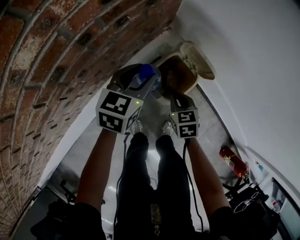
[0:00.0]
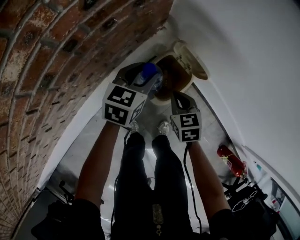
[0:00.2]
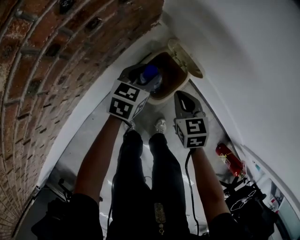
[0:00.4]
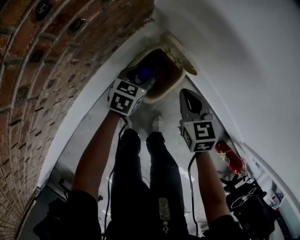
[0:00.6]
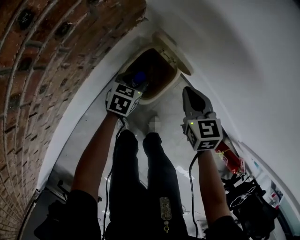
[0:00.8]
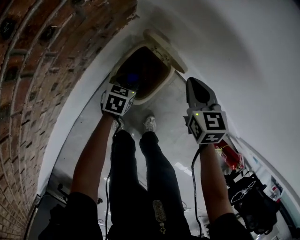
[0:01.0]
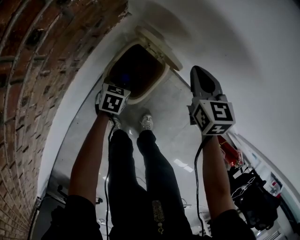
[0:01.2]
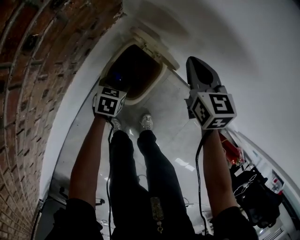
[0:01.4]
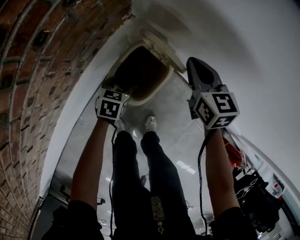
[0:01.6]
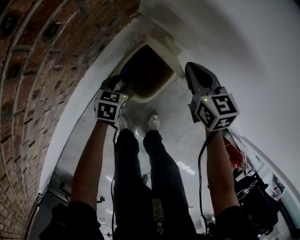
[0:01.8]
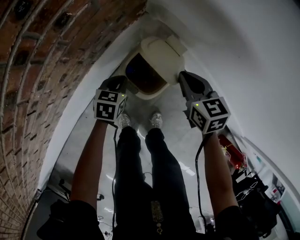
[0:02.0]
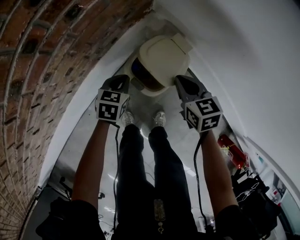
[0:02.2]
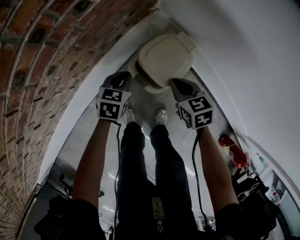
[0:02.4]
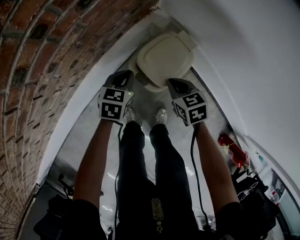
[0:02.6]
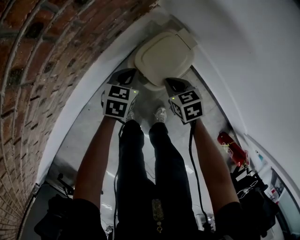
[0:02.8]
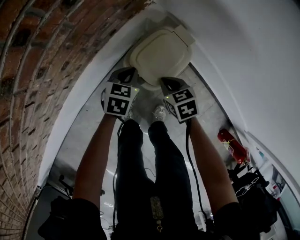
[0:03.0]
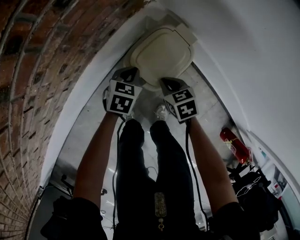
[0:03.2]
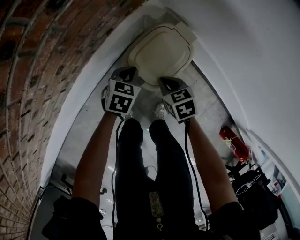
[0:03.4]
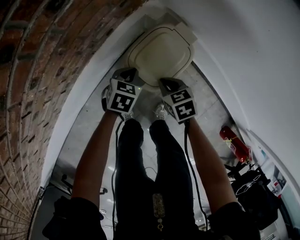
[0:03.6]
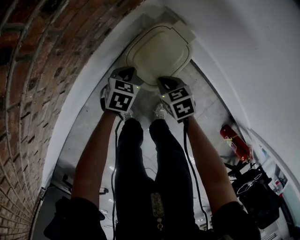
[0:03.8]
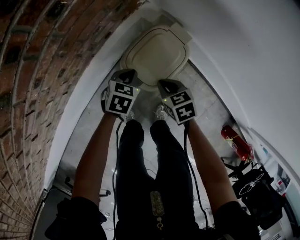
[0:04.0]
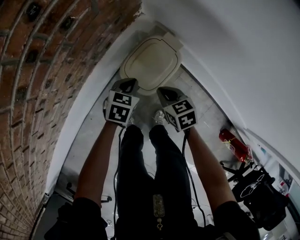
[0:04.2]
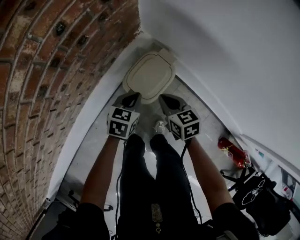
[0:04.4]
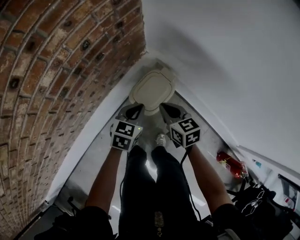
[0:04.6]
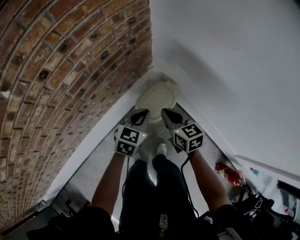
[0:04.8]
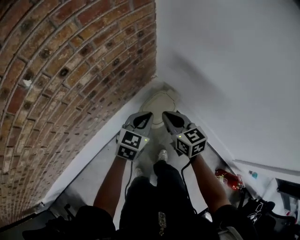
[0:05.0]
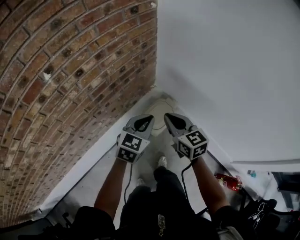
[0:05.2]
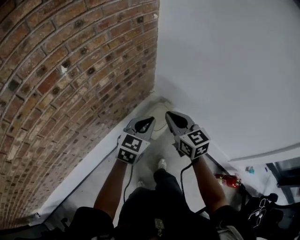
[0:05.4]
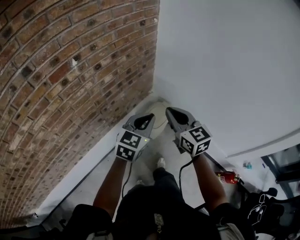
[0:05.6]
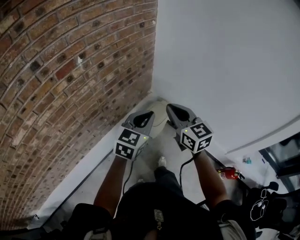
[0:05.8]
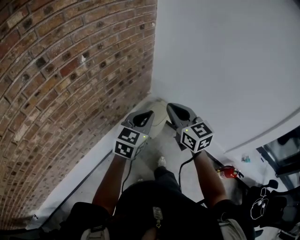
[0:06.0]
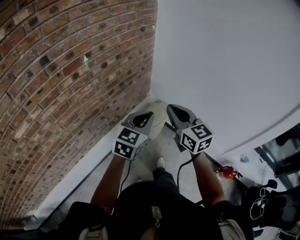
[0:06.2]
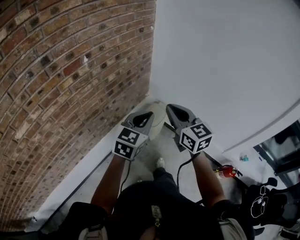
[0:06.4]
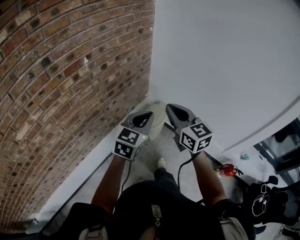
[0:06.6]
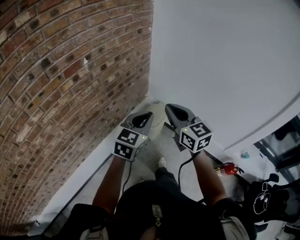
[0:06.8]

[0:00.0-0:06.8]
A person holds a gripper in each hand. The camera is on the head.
0:00.0 to 0:01.4: The left gripper is displaced downward by roughly 25 cm, and changes its angle by about 30 degrees. Meanwhile the right gripper heads to the right, forward and upward, covering roughly 25 cm, and changes its angle by roughly 20 degrees.
0:01.4 to 0:02.8: The left gripper heads upward and to the left, covering roughly 10 cm, and closes up. Meanwhile the right gripper moves to the left, downward and backward, some 25 cm, and turns by approximately 30 degrees.
0:04.0 to 0:05.4: The grippers both shift upward by some 50 cm. The right gripper points its fingers about 40 degrees further upward; the left gripper tips its fingers upward by about 40 degrees.
0:05.4 to 0:06.8: Both grippers move backward and upward, some 15 cm.

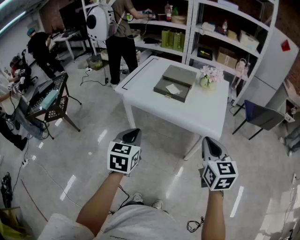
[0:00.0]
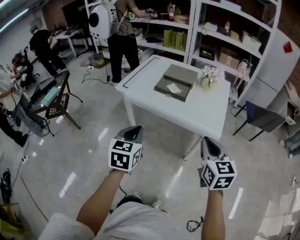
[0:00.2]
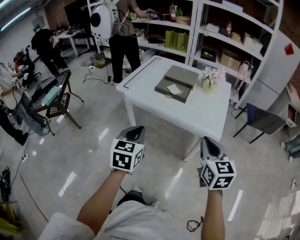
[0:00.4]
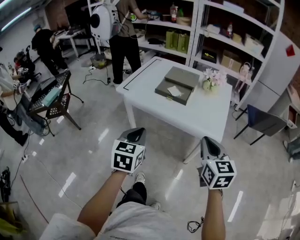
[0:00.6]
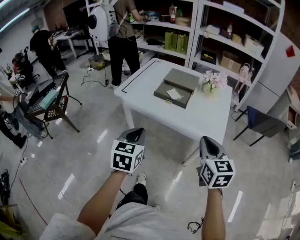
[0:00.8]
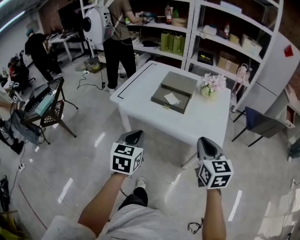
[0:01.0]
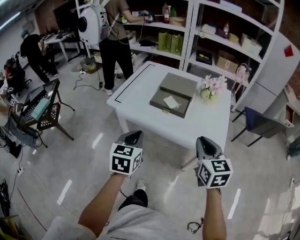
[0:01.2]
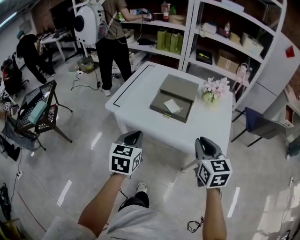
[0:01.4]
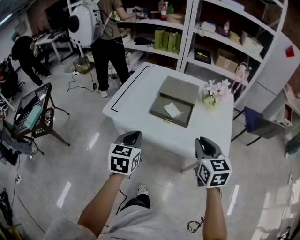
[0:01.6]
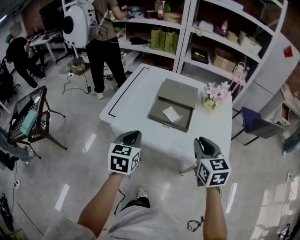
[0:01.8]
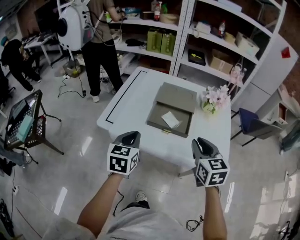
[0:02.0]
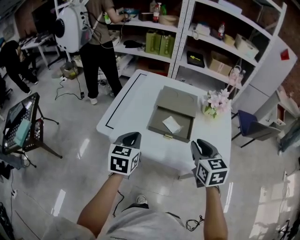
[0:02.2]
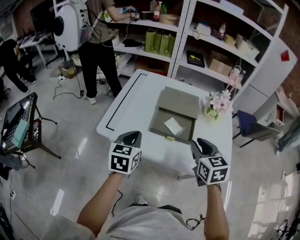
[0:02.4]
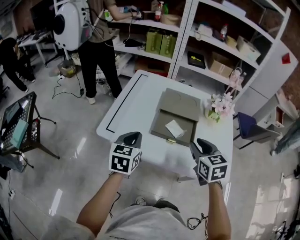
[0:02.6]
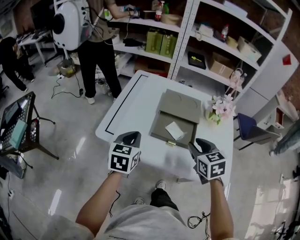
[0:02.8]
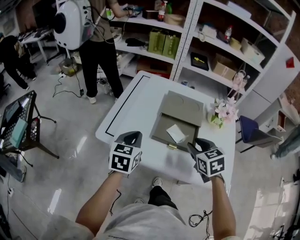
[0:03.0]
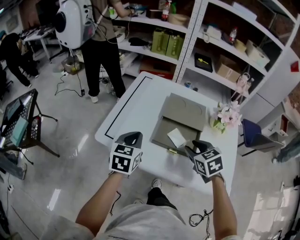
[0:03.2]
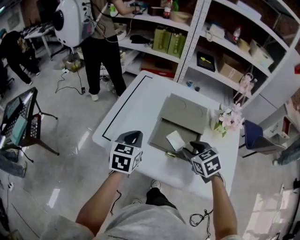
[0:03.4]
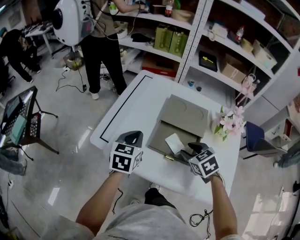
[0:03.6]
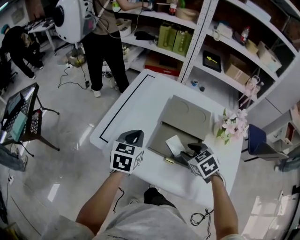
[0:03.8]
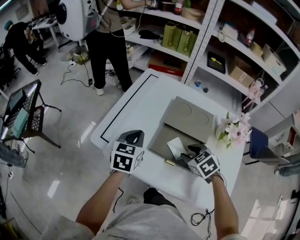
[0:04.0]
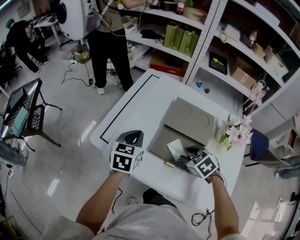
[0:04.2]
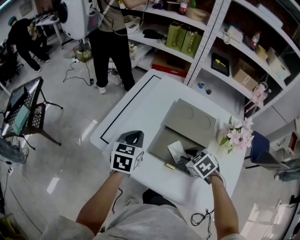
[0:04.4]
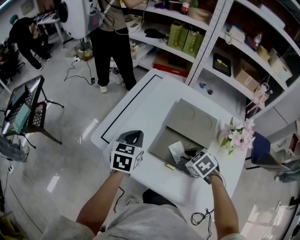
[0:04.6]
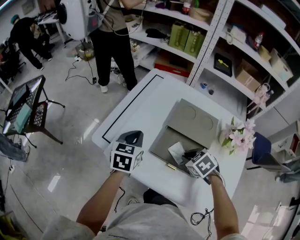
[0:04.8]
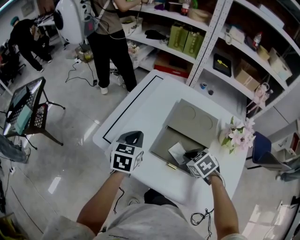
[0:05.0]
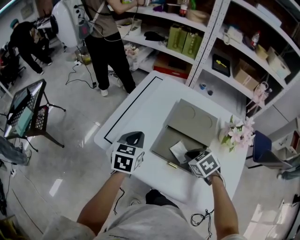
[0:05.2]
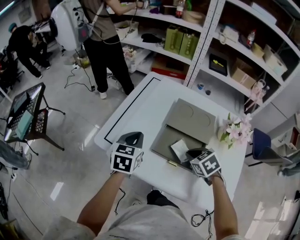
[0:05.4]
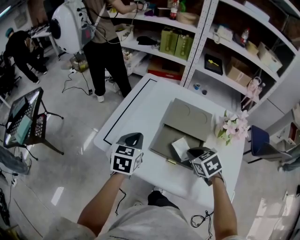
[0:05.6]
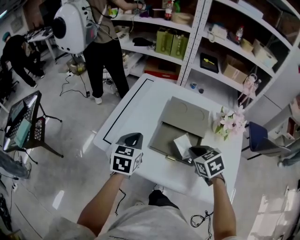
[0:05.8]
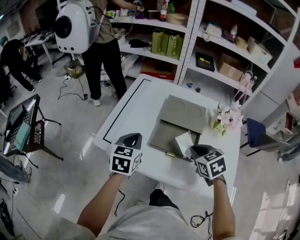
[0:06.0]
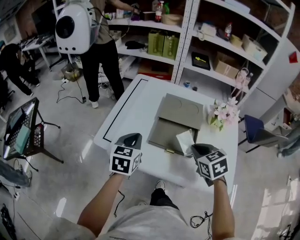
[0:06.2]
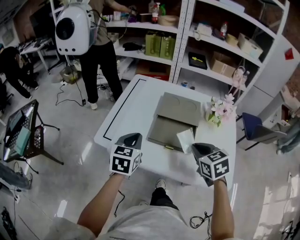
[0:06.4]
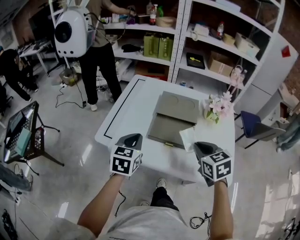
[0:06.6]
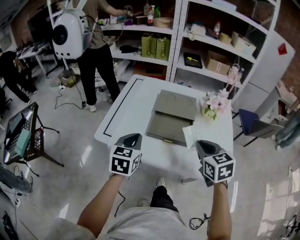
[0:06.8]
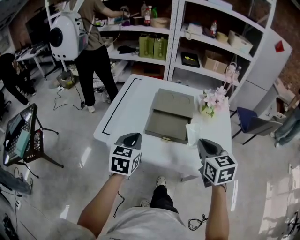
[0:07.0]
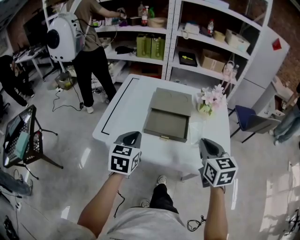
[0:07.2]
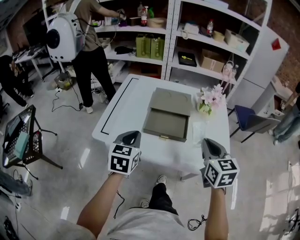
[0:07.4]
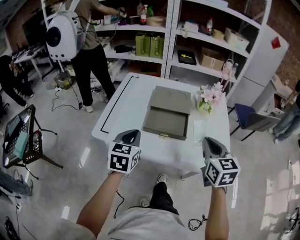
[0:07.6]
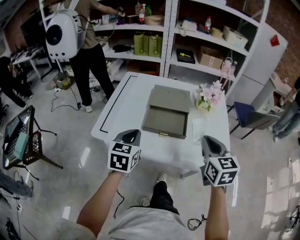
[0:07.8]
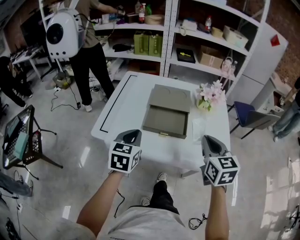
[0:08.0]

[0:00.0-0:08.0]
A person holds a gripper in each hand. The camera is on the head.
0:00.0 to 0:01.6: The grippers both shift forward by approximately 20 cm.
0:01.6 to 0:03.2: The right gripper moves forward and downward, some 20 cm, turns by roughly 30 degrees, and opens. The left gripper heads forward, covering about 20 cm.
0:03.2 to 0:04.8: The right gripper moves downward and forward, roughly 10 cm, rotates some 30 degrees, and closes up. The left gripper shifts roughly 5 cm forward.
0:04.8 to 0:06.4: The left gripper goes approximately 10 cm backward and upward. Meanwhile the right gripper is displaced upward and backward by roughly 15 cm, and rotates approximately 40 degrees.
0:06.4 to 0:08.0: The left gripper goes about 5 cm backward. Meanwhile the right gripper shifts approximately 10 cm backward, upward and to the right, and changes its angle by some 30 degrees.

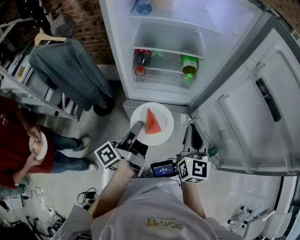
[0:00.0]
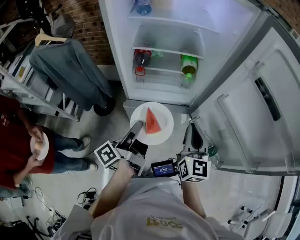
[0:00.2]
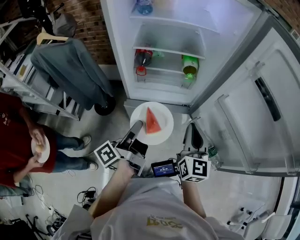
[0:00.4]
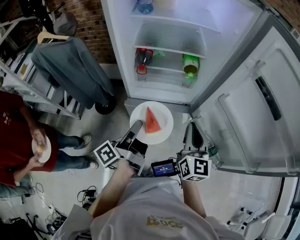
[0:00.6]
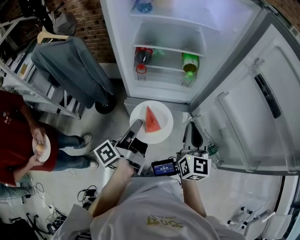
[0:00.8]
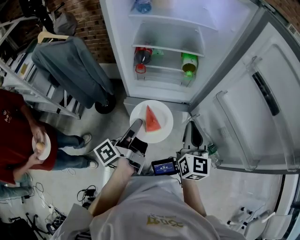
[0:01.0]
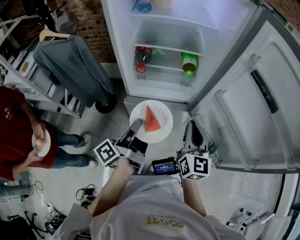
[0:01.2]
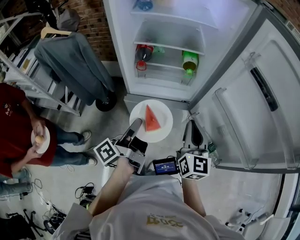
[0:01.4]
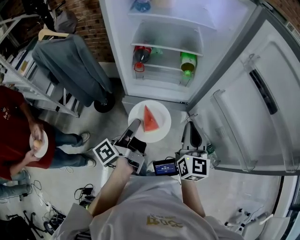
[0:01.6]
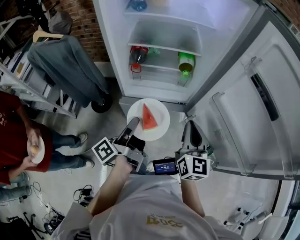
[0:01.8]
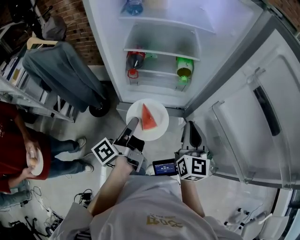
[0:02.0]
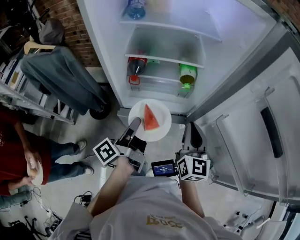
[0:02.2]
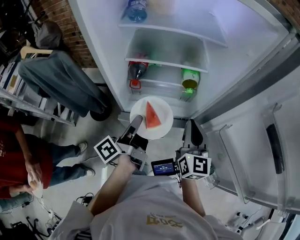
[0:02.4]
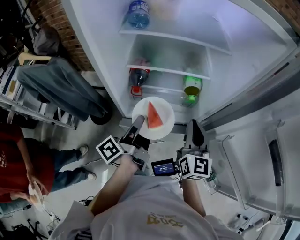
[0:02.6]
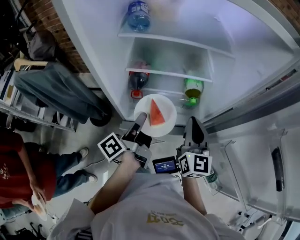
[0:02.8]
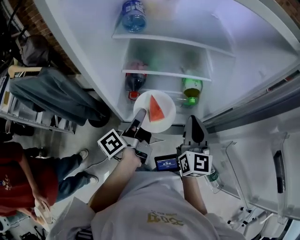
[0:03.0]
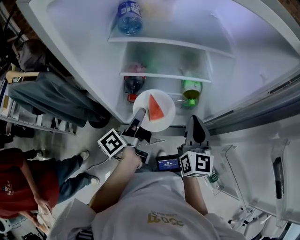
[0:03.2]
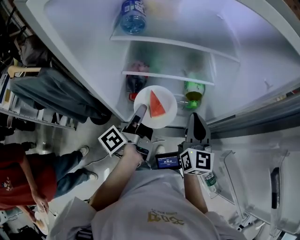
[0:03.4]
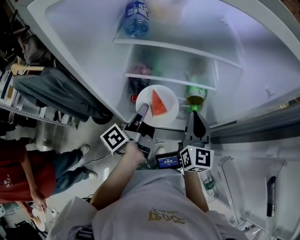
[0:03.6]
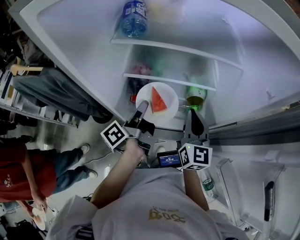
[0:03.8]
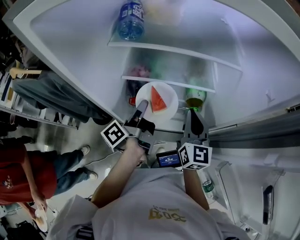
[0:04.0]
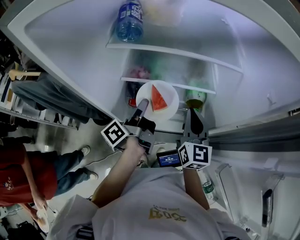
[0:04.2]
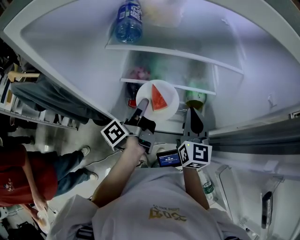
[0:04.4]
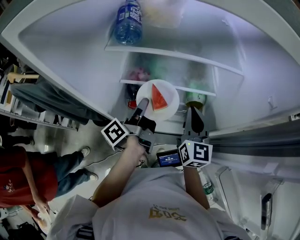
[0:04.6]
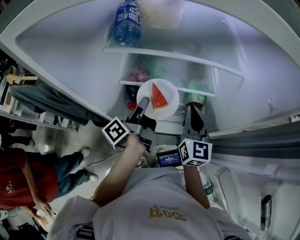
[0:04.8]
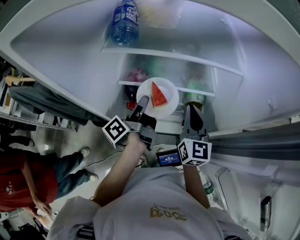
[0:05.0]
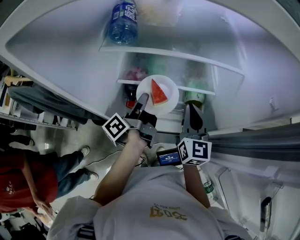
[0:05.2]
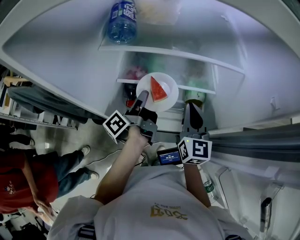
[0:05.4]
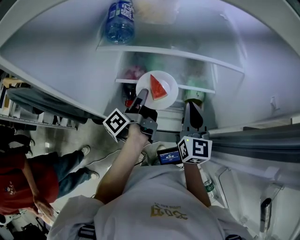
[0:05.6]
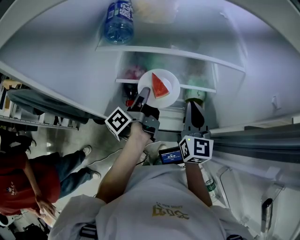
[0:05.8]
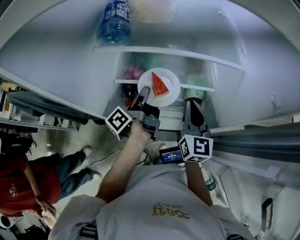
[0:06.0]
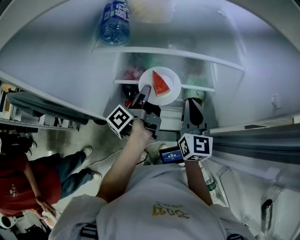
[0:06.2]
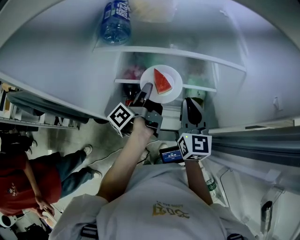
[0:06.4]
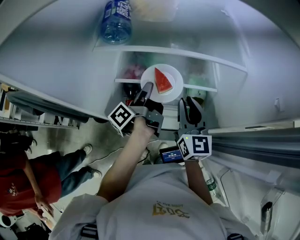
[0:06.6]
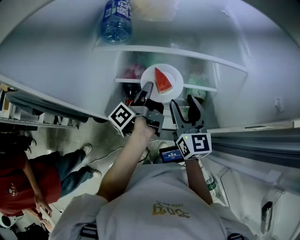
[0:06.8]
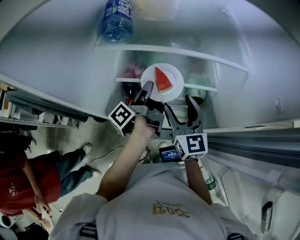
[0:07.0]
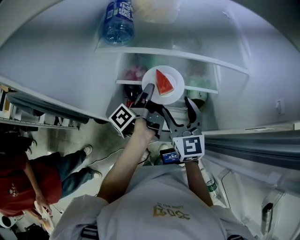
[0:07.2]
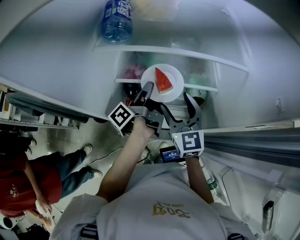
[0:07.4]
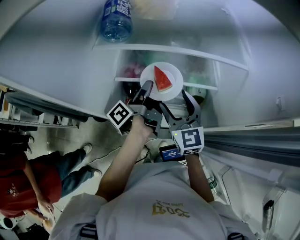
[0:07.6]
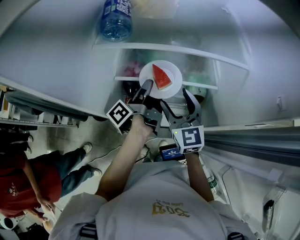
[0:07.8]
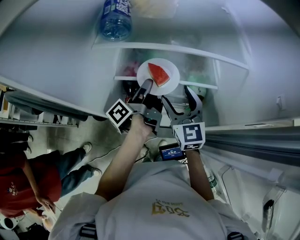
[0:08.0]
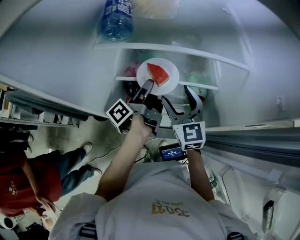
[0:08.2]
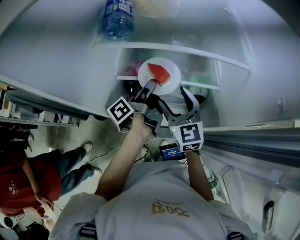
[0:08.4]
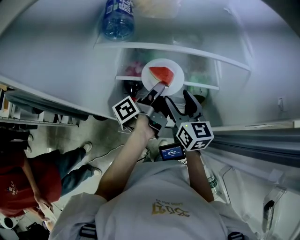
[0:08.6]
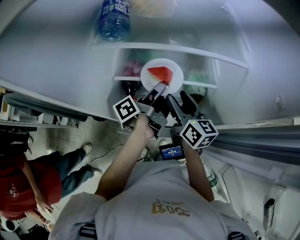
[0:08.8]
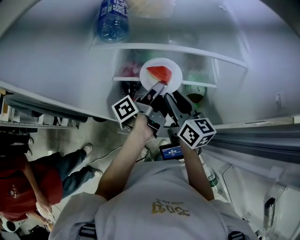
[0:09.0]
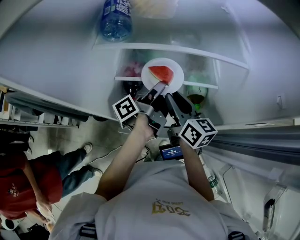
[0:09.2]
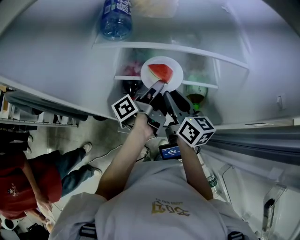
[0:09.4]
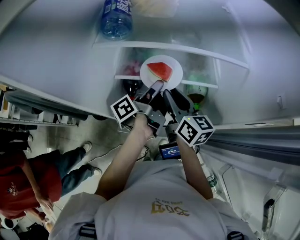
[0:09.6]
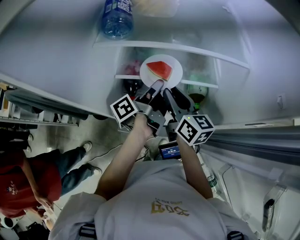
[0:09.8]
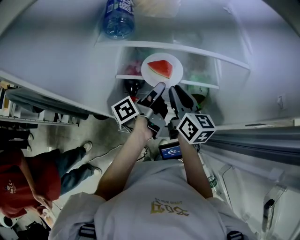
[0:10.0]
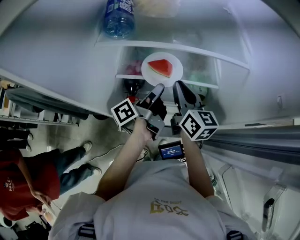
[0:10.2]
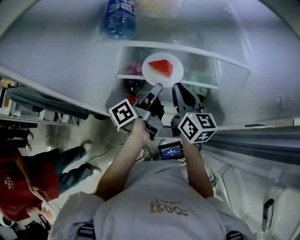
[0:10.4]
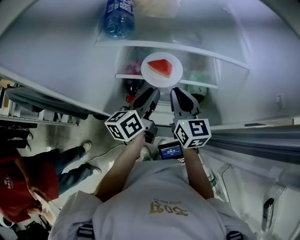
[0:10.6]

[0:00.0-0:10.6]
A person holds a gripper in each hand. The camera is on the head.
0:00.0 to 0:01.6: The grippers move only a little.
0:01.6 to 0:03.0: The two grippers go approximately 25 cm forward.
0:03.0 to 0:04.6: The grippers both shift forward by roughly 10 cm.
0:04.6 to 0:06.0: The left gripper shifts about 5 cm forward.
0:06.0 to 0:07.6: The right gripper moves to the left, roughly 10 cm, turns by about 20 degrees, and opens.
0:07.6 to 0:09.0: The right gripper rotates approximately 40 degrees, and closes up, while the left gripper shifts by approximately 5 cm.
0:09.0 to 0:10.6: The right gripper turns by roughly 20 degrees, and closes up; the left gripper rolls clockwise, seen from behind, by roughly 50 degrees.
